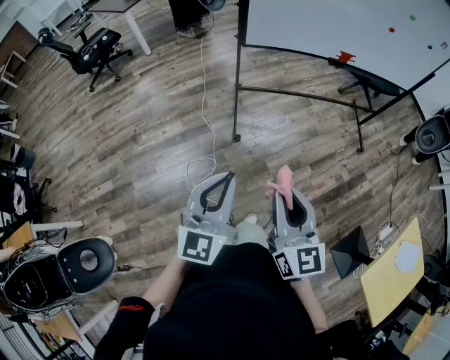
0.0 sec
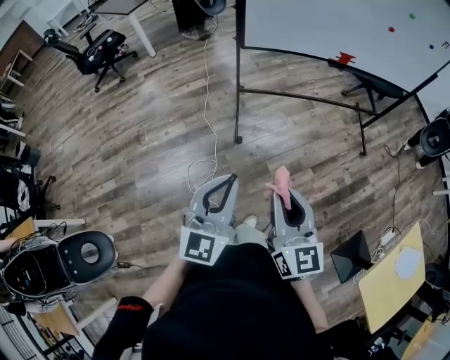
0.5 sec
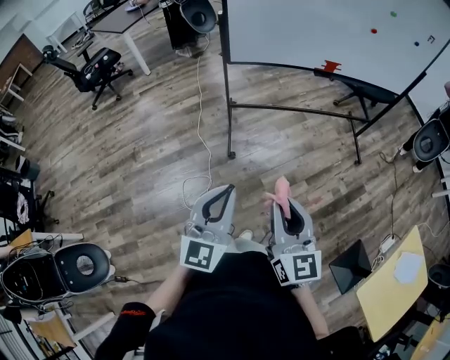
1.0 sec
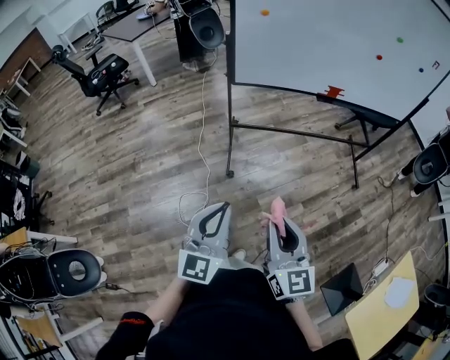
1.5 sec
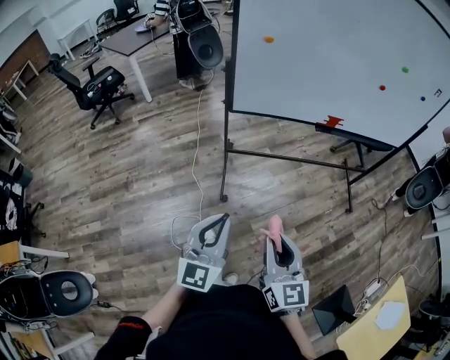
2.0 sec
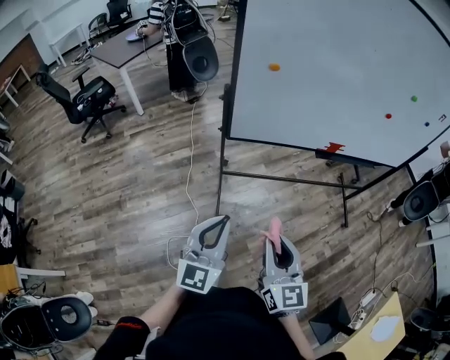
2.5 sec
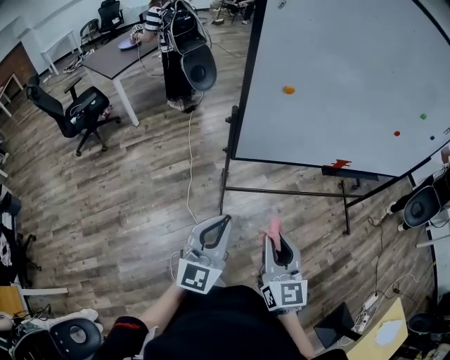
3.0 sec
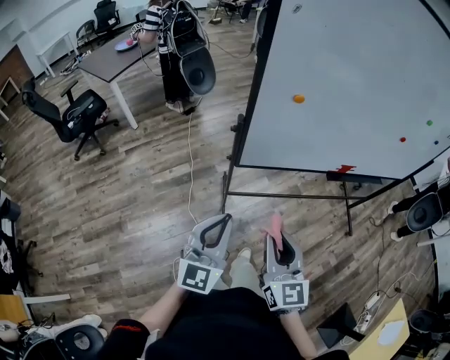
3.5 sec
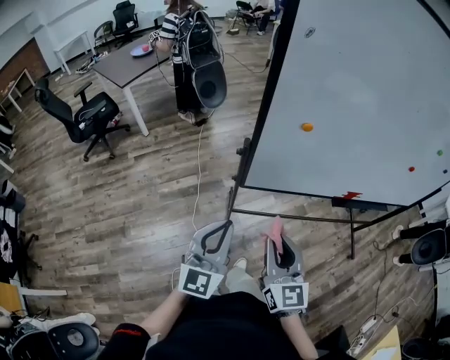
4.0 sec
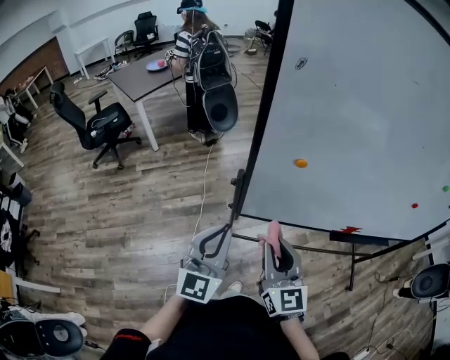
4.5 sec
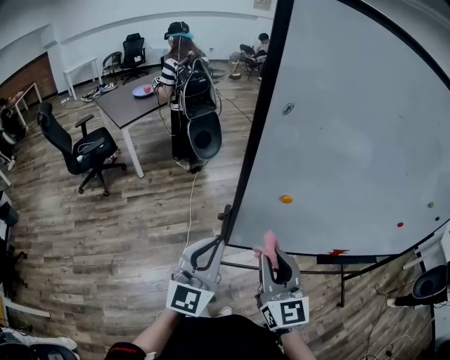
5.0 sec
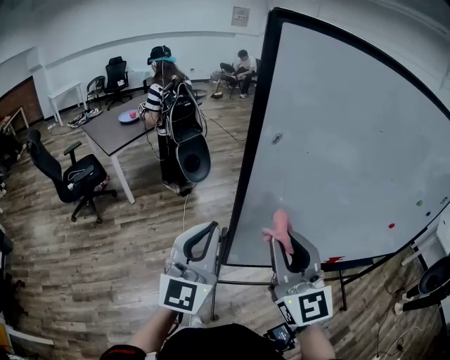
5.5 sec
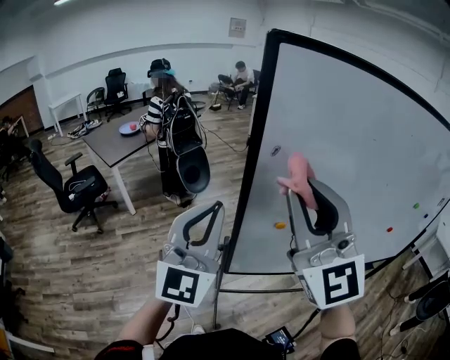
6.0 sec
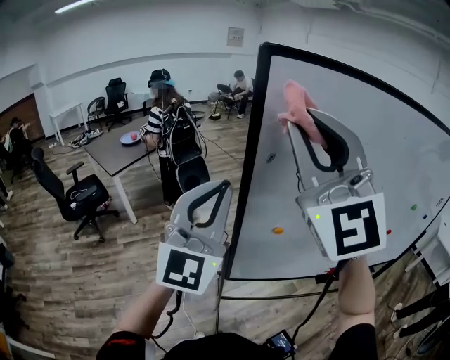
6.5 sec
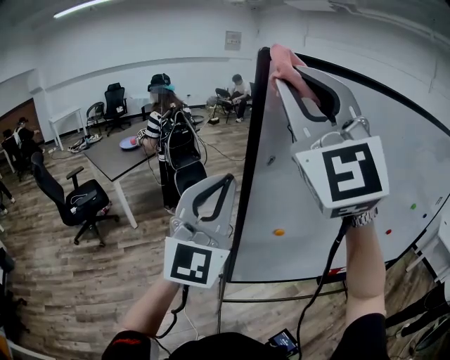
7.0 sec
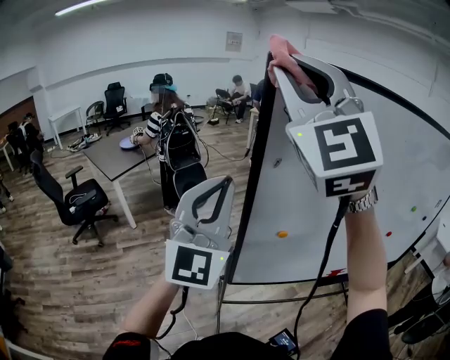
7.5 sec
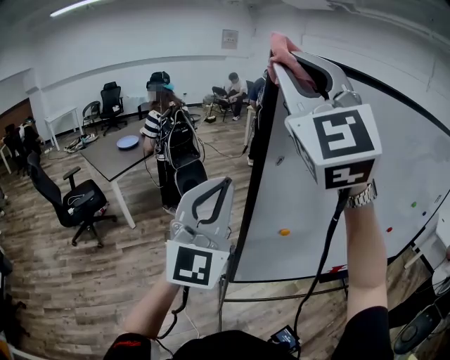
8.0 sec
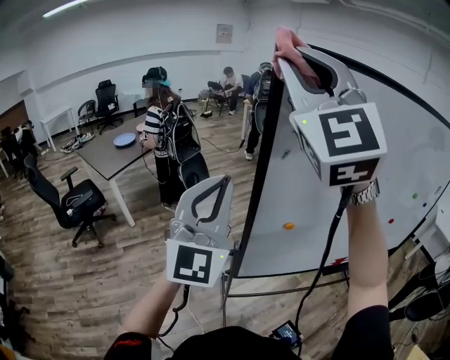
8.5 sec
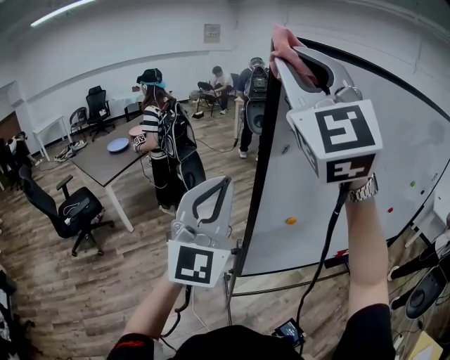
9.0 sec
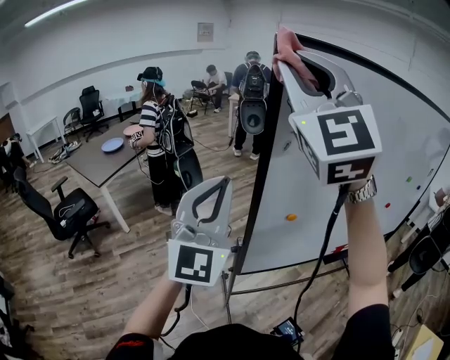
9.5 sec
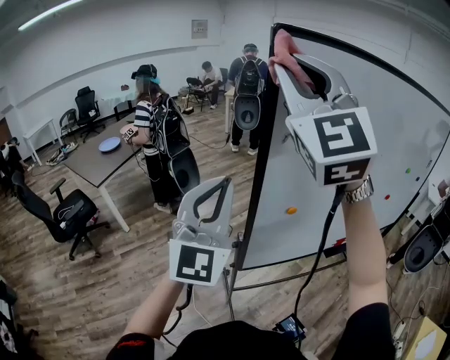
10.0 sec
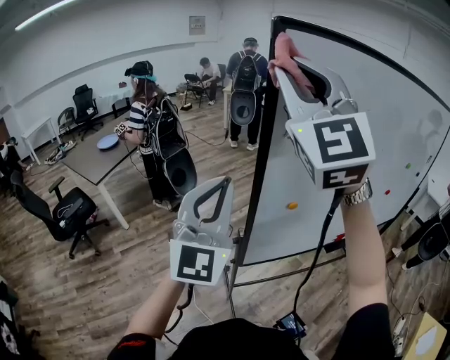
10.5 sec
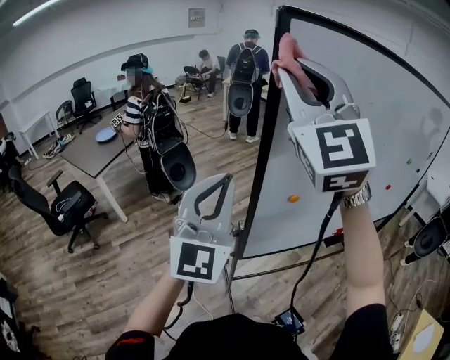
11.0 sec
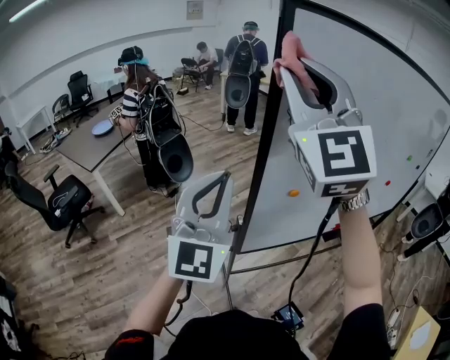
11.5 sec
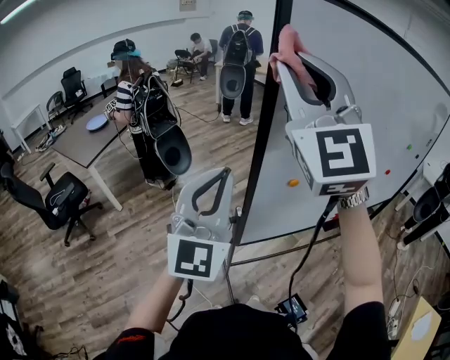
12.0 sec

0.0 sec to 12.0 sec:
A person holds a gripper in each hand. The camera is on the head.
0.0 sec to 2.0 sec: The two grippers go about 15 cm forward and to the right.
2.0 sec to 4.0 sec: The two grippers go about 35 cm forward.
4.0 sec to 6.0 sec: The left gripper heads upward and forward, covering some 30 cm, and swivels approximately 20 degrees; the right gripper goes roughly 35 cm upward, and turns by some 40 degrees.
6.0 sec to 8.0 sec: The right gripper is displaced upward and forward by roughly 20 cm; the left gripper goes approximately 5 cm upward.
8.0 sec to 10.0 sec: There are only small adjustments of the grippers.
10.0 sec to 12.0 sec: The right gripper heads downward, covering about 5 cm.

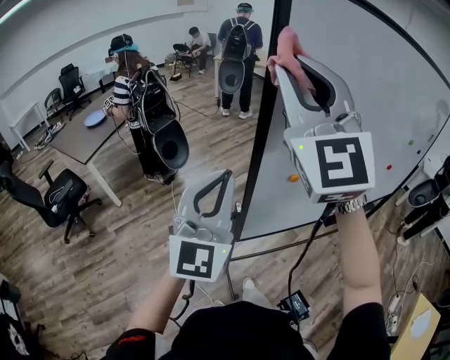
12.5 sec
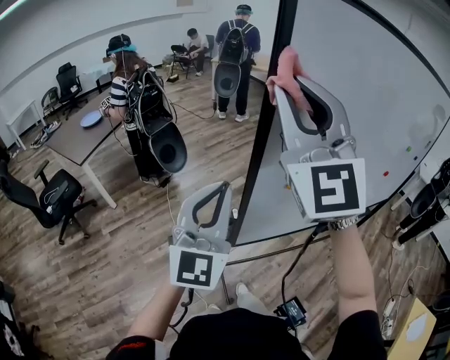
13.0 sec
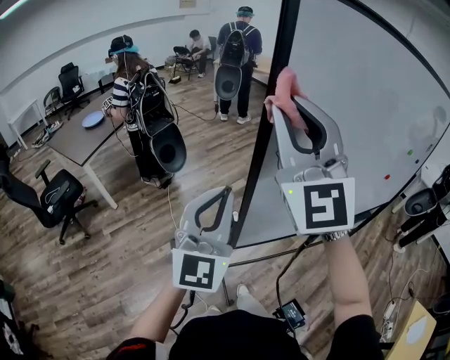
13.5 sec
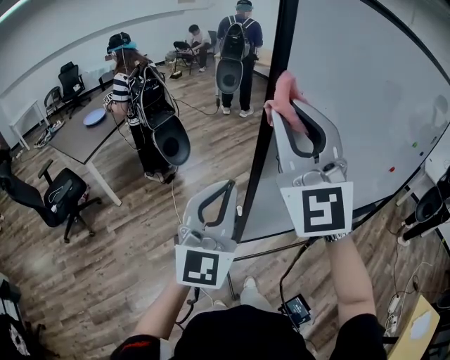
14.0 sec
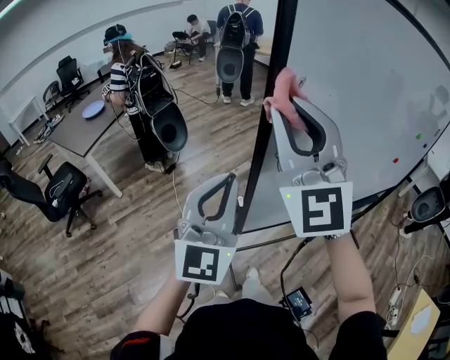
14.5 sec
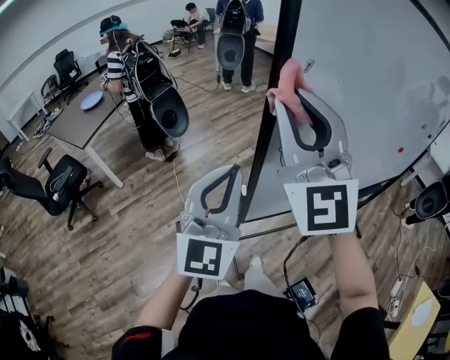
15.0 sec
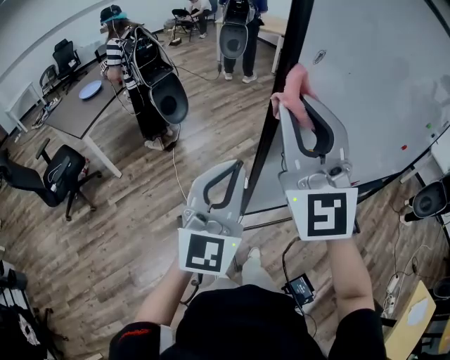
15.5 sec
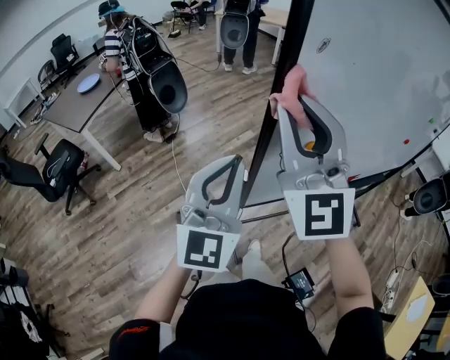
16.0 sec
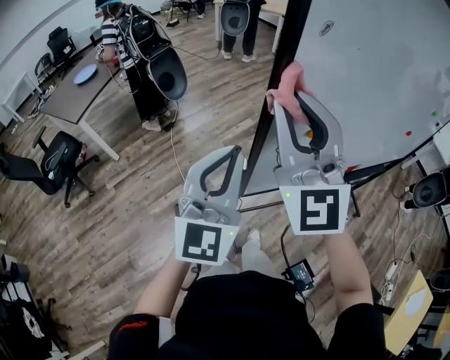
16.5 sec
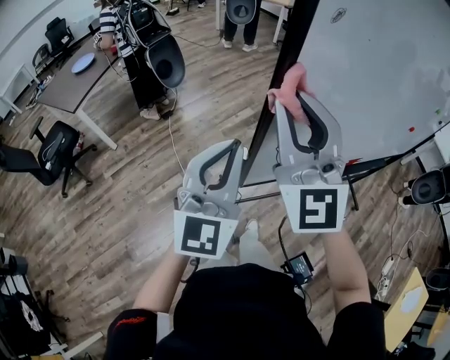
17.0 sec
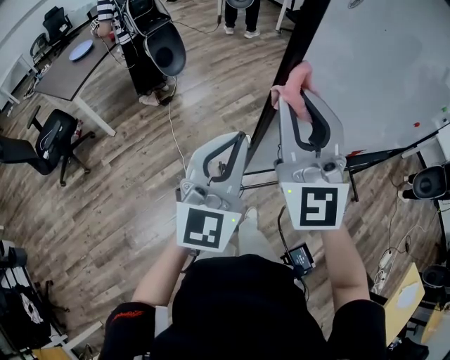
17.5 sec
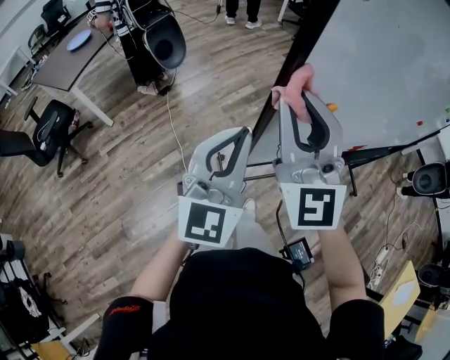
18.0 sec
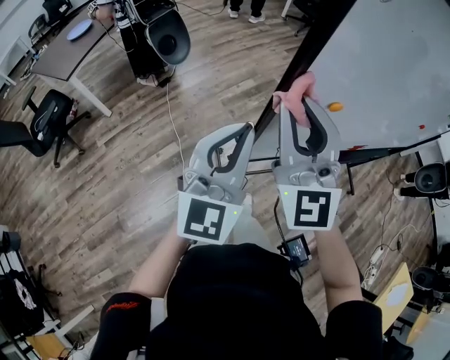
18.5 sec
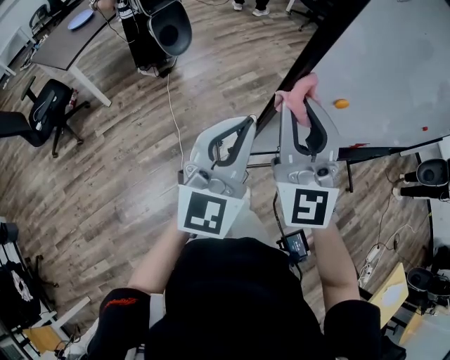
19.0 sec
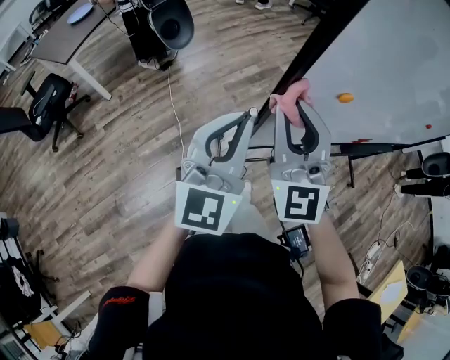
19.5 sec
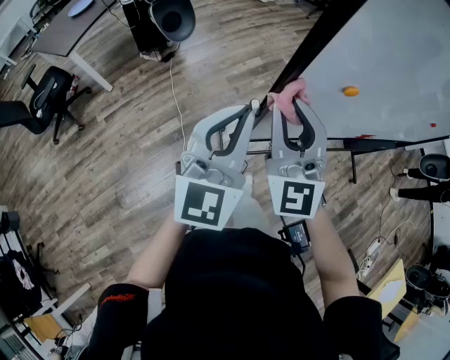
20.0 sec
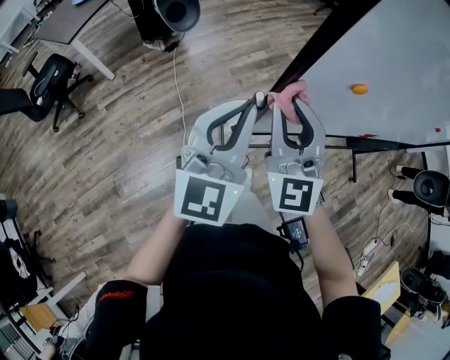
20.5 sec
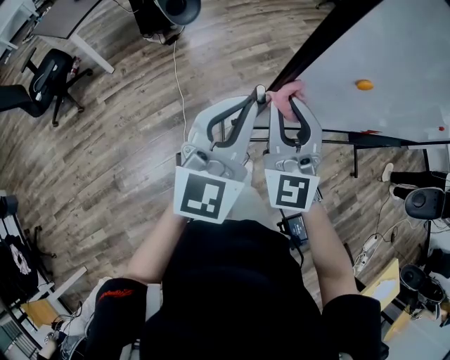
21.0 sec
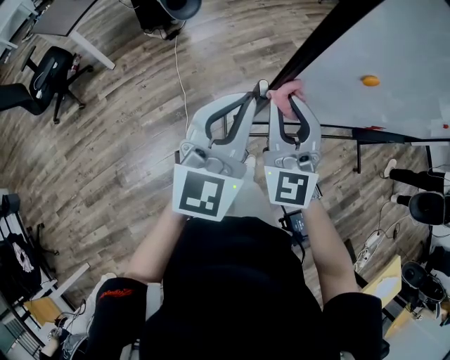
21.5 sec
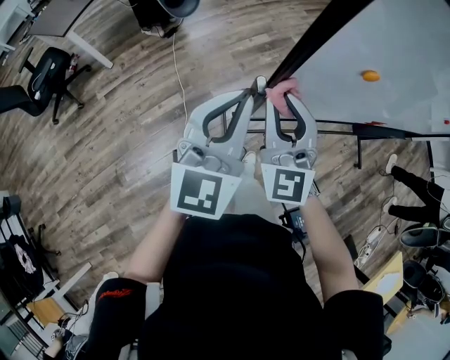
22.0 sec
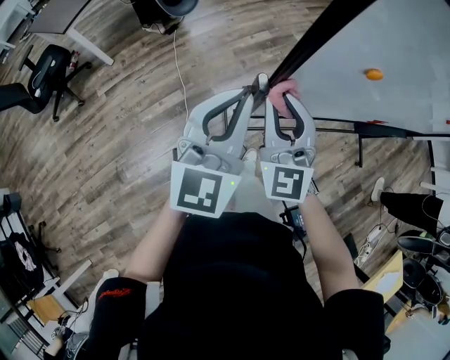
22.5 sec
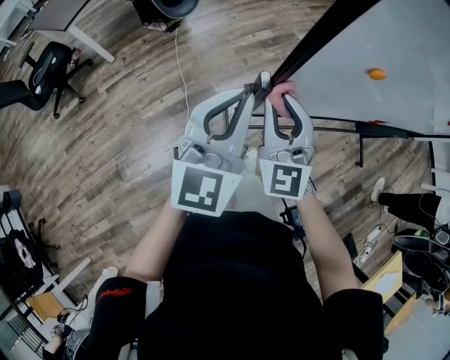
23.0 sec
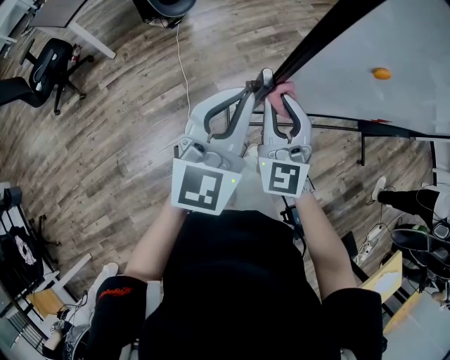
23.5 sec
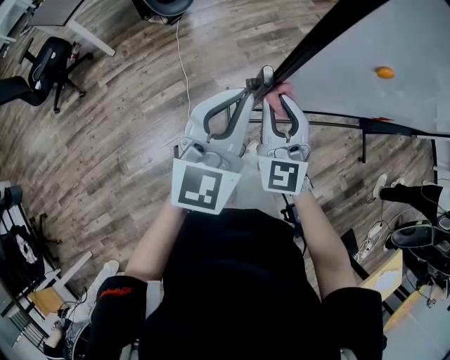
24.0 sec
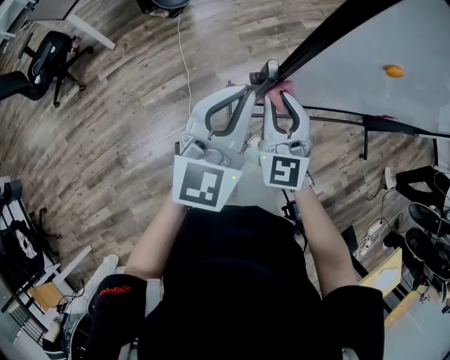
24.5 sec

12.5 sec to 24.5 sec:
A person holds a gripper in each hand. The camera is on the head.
12.5 sec to 14.5 sec: The left gripper changes place by about 5 cm. The right gripper moves downward, some 10 cm.
14.5 sec to 16.5 sec: The right gripper travels downward by approximately 10 cm.
16.5 sec to 18.5 sec: The right gripper heads downward, covering approximately 10 cm. The left gripper heads downward, covering some 5 cm.
18.5 sec to 20.5 sec: The right gripper travels downward by roughly 10 cm.
20.5 sec to 22.5 sec: The right gripper is displaced downward by some 5 cm.
22.5 sec to 24.5 sec: The right gripper shifts approximately 10 cm downward.

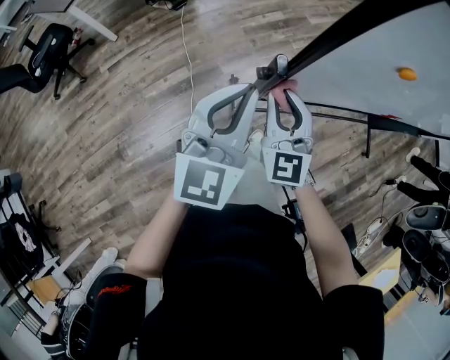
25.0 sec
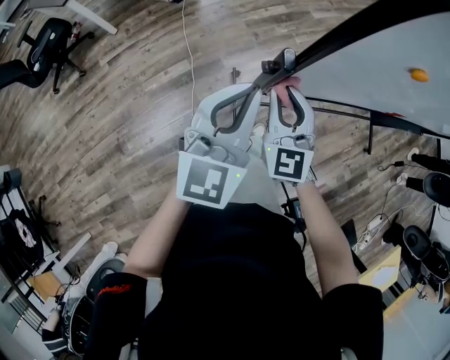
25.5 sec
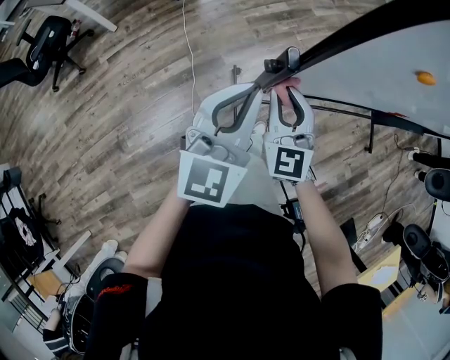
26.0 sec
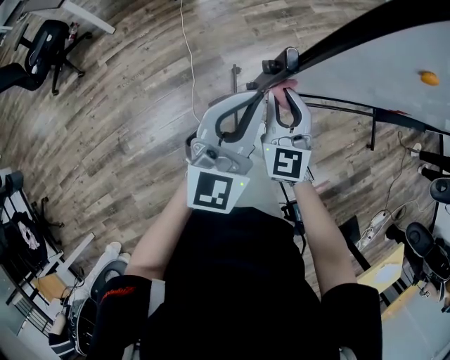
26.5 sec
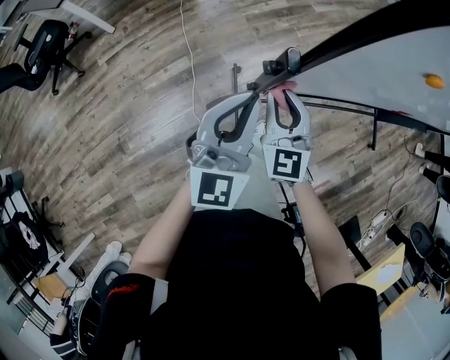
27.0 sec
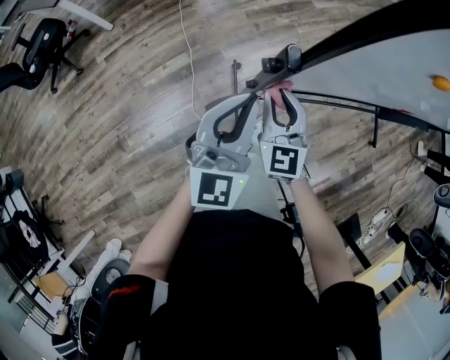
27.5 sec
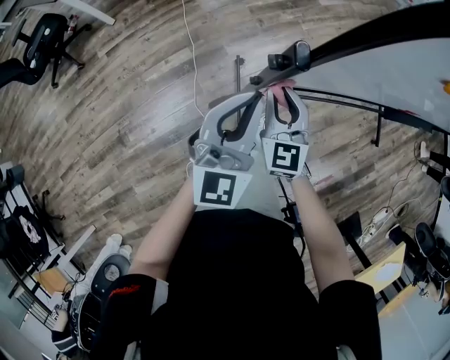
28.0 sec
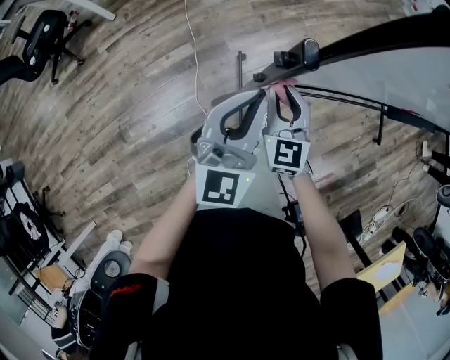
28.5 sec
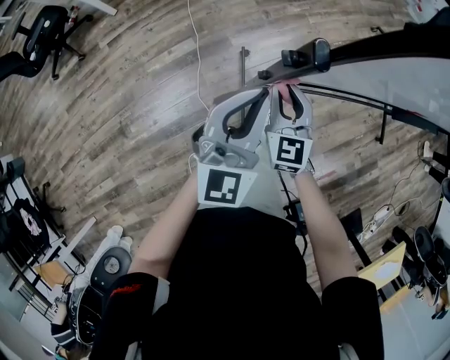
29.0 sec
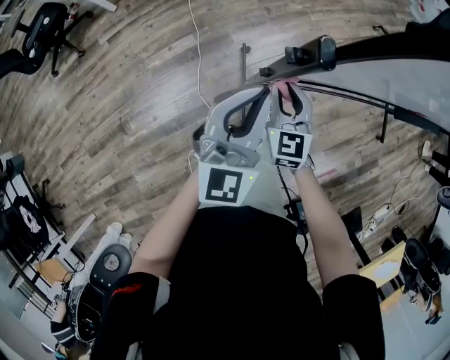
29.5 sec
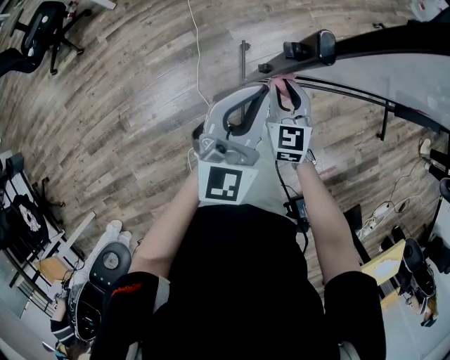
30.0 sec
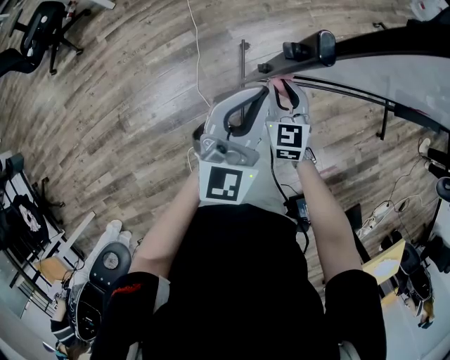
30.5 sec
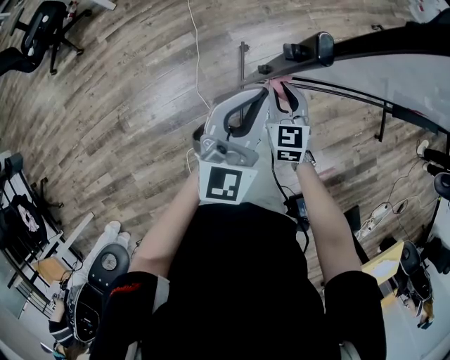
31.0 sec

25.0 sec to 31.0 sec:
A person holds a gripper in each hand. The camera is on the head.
25.0 sec to 27.0 sec: The right gripper travels downward by about 5 cm. Meanwhile the left gripper shifts by some 5 cm.
27.0 sec to 29.0 sec: The right gripper shifts about 10 cm downward.
29.0 sec to 31.0 sec: The right gripper moves downward, about 5 cm.
